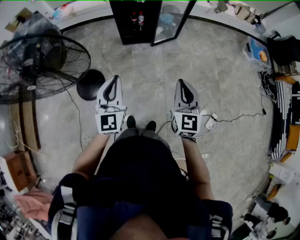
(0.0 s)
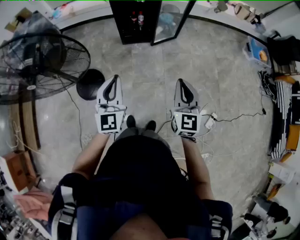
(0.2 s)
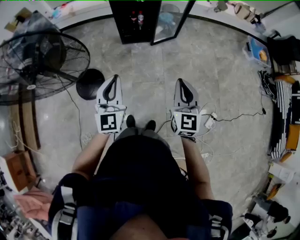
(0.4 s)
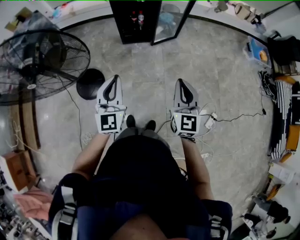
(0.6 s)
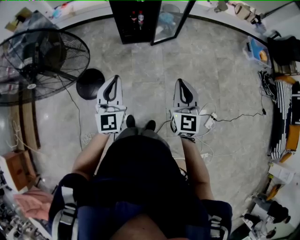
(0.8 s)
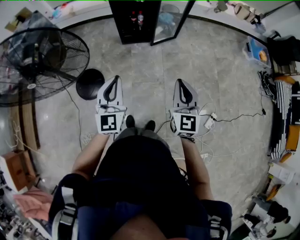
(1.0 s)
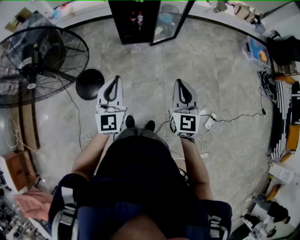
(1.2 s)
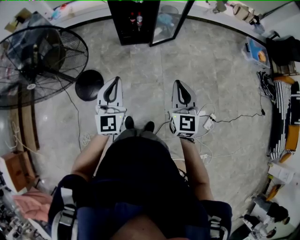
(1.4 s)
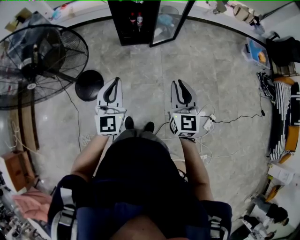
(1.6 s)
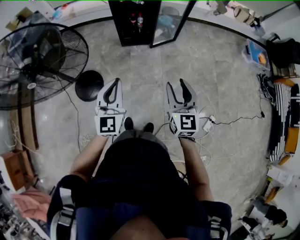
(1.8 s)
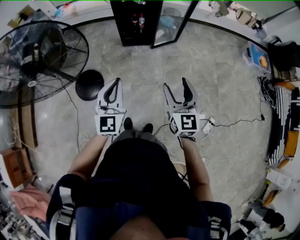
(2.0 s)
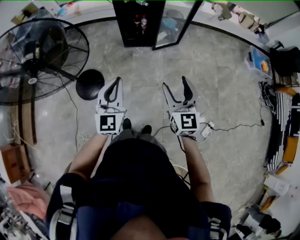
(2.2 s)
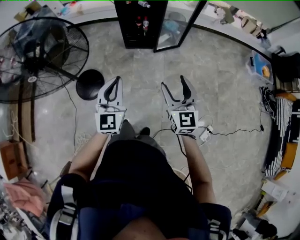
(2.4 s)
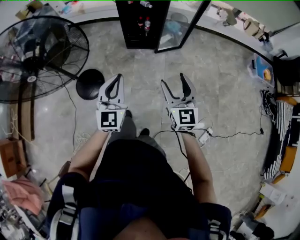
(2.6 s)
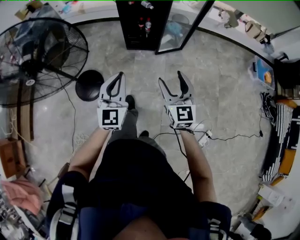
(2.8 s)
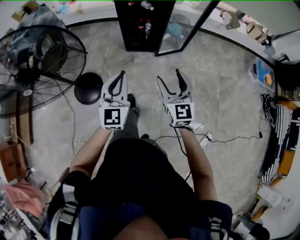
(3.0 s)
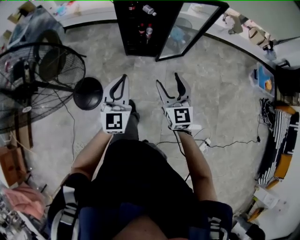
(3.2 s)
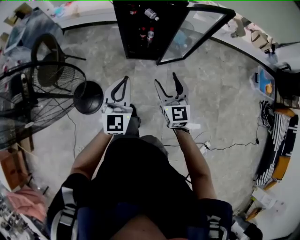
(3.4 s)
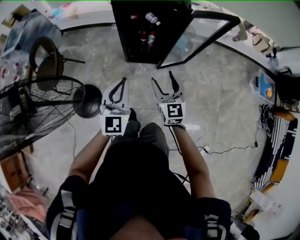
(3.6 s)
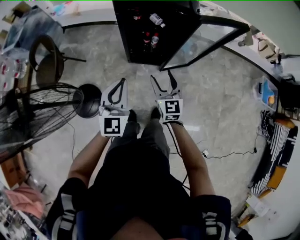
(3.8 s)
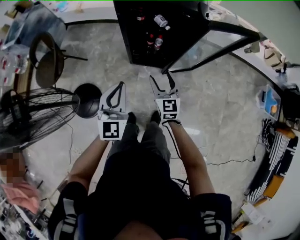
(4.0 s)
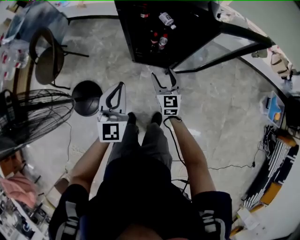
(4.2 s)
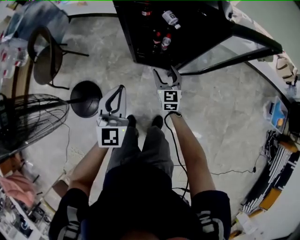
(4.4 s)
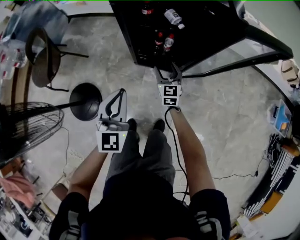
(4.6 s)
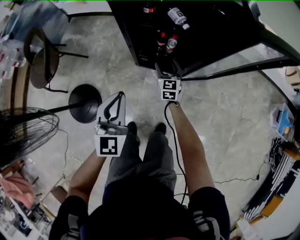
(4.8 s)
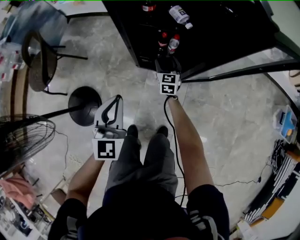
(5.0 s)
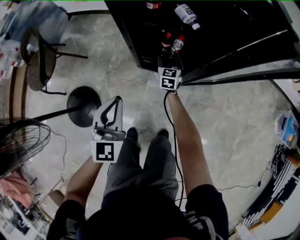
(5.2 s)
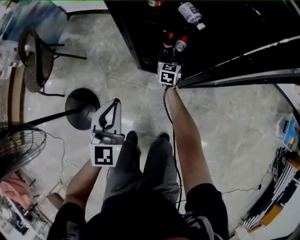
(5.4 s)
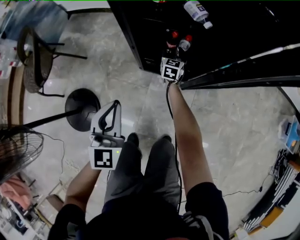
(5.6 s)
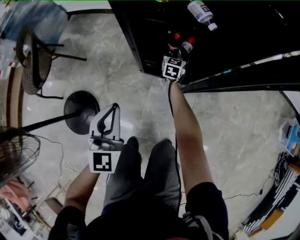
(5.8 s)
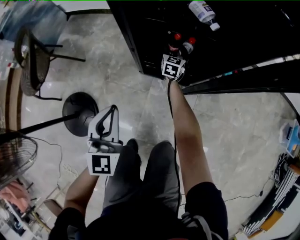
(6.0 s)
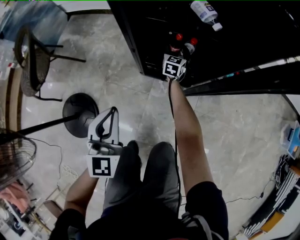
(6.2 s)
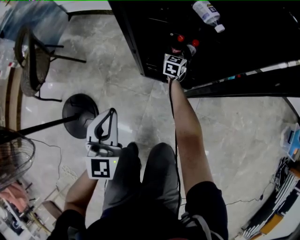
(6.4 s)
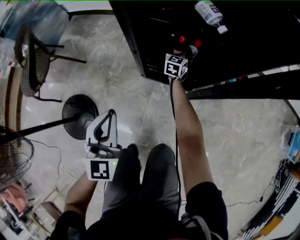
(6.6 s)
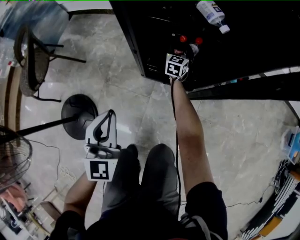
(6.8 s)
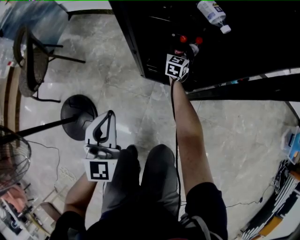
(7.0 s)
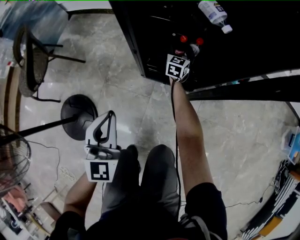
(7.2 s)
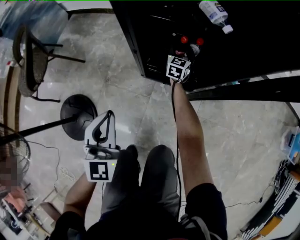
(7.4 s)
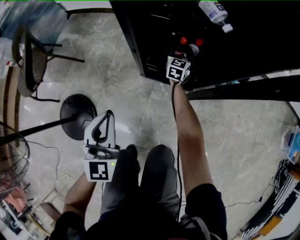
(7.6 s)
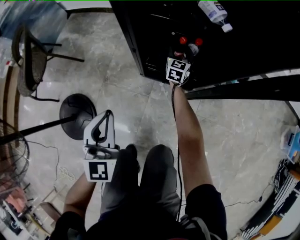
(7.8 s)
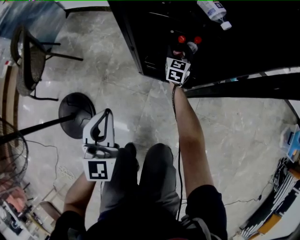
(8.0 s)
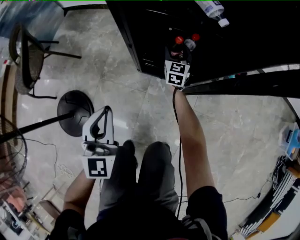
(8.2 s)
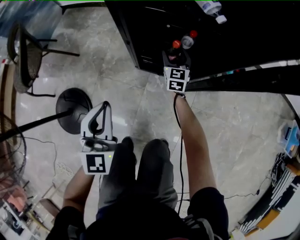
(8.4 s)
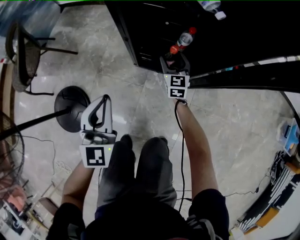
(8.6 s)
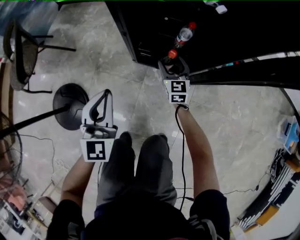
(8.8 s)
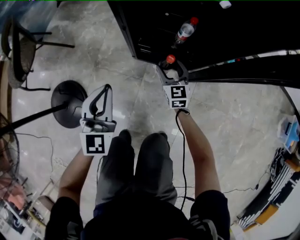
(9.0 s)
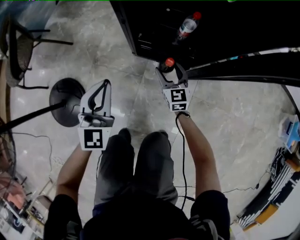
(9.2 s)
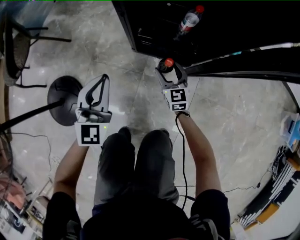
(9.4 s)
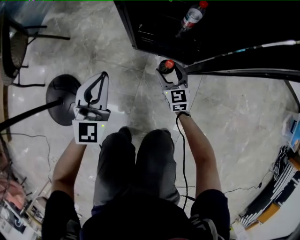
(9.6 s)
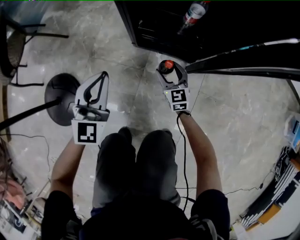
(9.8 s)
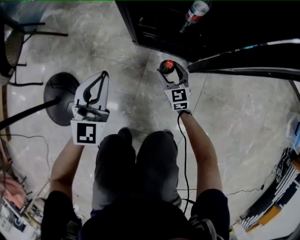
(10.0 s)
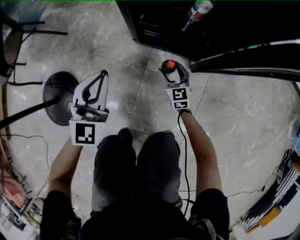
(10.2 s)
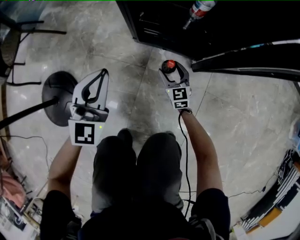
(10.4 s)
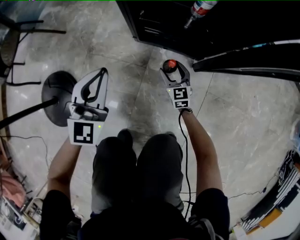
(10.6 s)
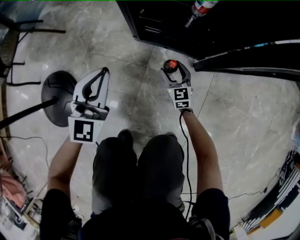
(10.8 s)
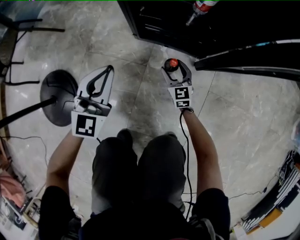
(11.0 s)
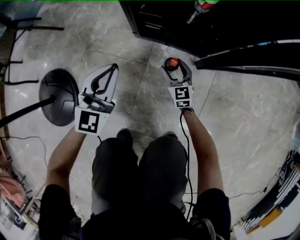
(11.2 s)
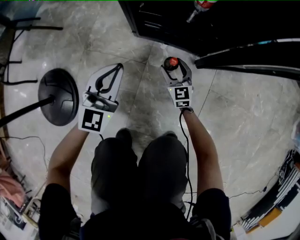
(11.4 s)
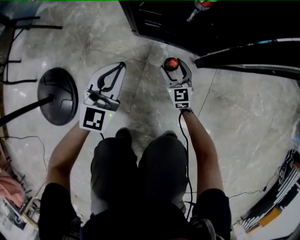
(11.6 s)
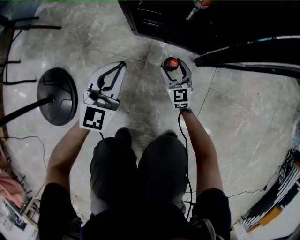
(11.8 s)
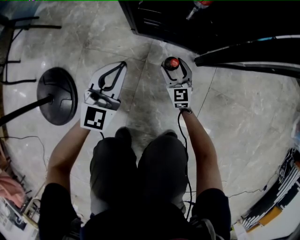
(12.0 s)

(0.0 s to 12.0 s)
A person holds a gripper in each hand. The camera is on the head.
0.0 s - 1.6 s: The grippers make only small movements.
1.6 s - 3.0 s: Both grippers travel together forward, about 15 cm. The right gripper opens its fingers.
3.0 s - 4.4 s: The two grippers go some 50 cm forward and downward.
4.4 s - 6.0 s: The left gripper moves downward, some 25 cm. The right gripper moves downward and forward, about 40 cm.
6.0 s - 7.6 s: The grippers make only small movements.
7.6 s - 9.0 s: The right gripper travels backward by about 20 cm, and turns by about 20 degrees. Meanwhile the left gripper shifts approximately 5 cm downward.
9.0 s - 10.4 s: The right gripper shifts about 25 cm downward; the left gripper goes roughly 15 cm downward.
10.4 s - 12.0 s: The left gripper moves downward, about 10 cm.

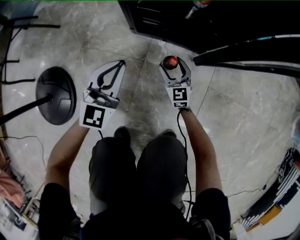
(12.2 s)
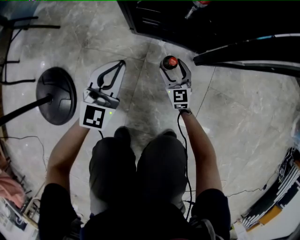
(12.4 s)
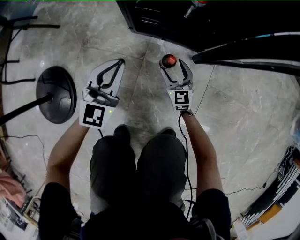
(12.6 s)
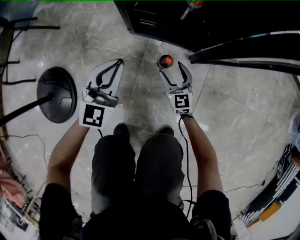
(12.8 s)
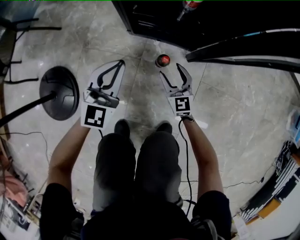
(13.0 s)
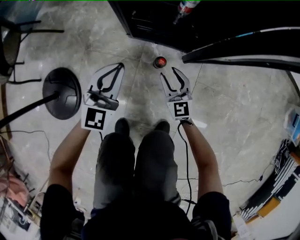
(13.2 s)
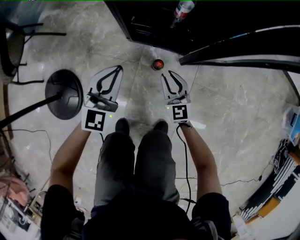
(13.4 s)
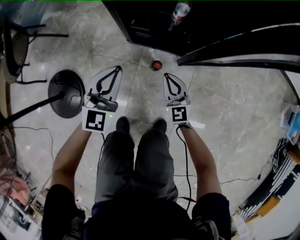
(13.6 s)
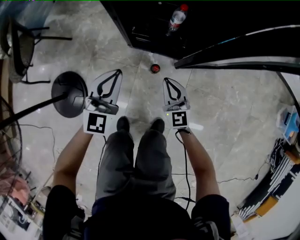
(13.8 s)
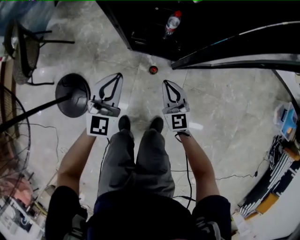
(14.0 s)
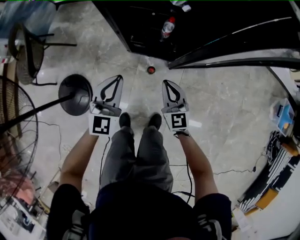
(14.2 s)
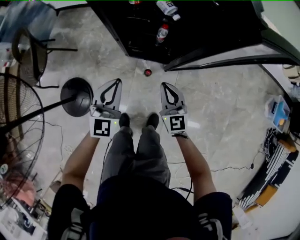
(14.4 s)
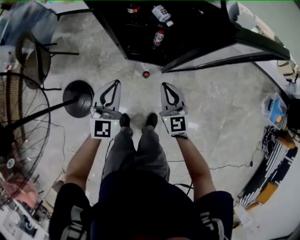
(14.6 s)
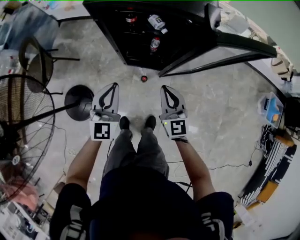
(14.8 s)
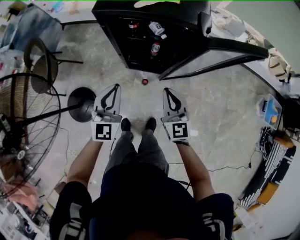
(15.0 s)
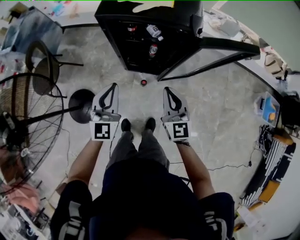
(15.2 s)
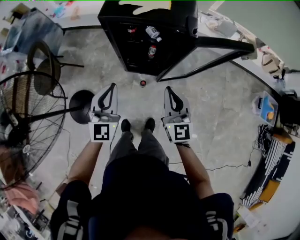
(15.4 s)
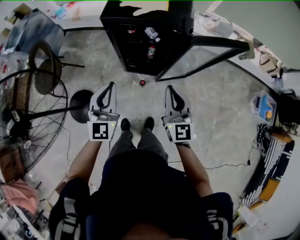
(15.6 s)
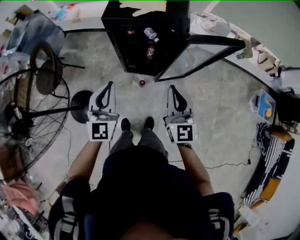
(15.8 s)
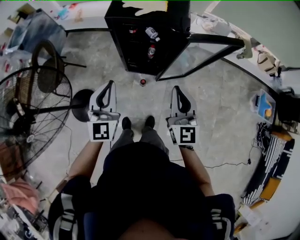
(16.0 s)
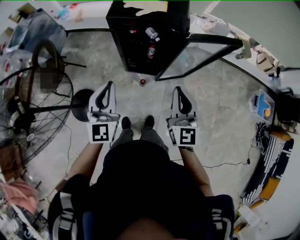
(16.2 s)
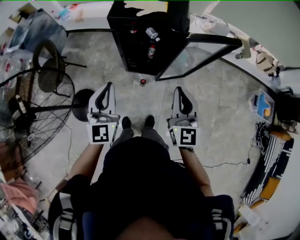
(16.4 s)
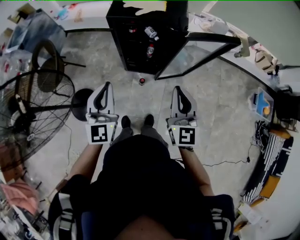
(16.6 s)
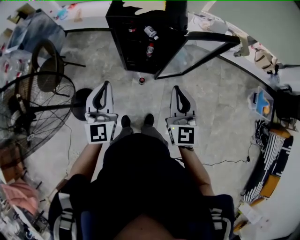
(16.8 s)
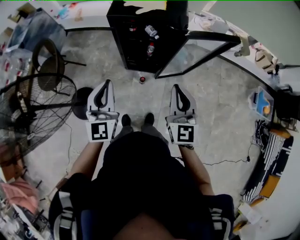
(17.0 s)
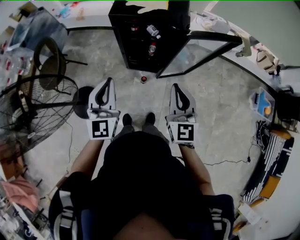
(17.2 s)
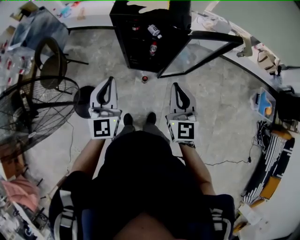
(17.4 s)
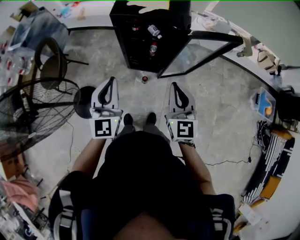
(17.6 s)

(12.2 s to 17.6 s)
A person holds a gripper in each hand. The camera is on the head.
12.2 s - 13.6 s: The two grippers go approximately 25 cm upward. The right gripper closes its fingers.
13.6 s - 15.0 s: The grippers both shift upward by some 50 cm.
15.0 s - 16.2 s: The two grippers go some 20 cm upward and backward.
16.2 s - 17.6 s: There are only small adjustments of the grippers.

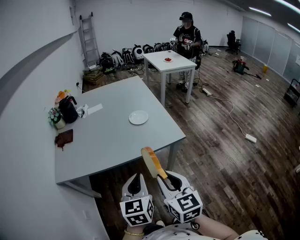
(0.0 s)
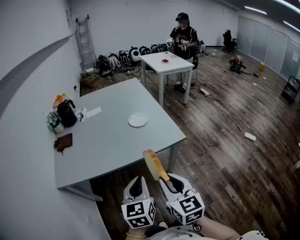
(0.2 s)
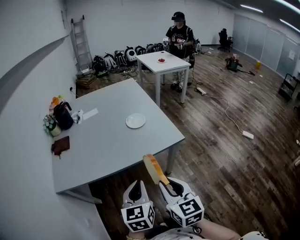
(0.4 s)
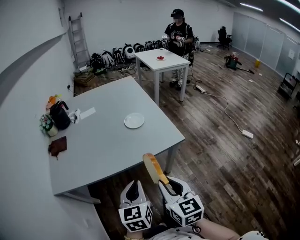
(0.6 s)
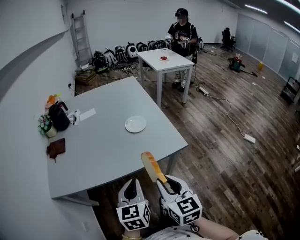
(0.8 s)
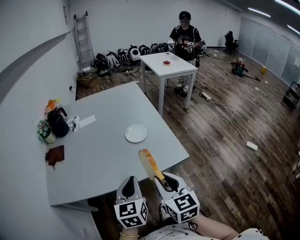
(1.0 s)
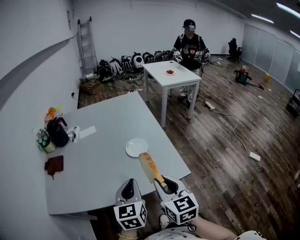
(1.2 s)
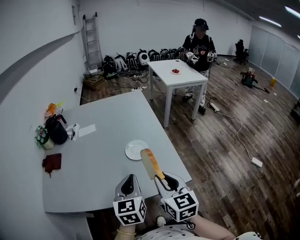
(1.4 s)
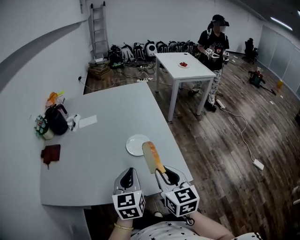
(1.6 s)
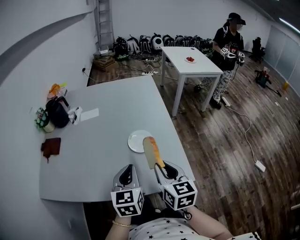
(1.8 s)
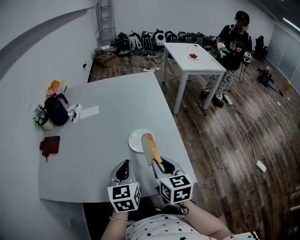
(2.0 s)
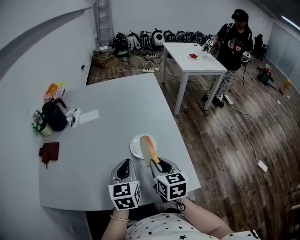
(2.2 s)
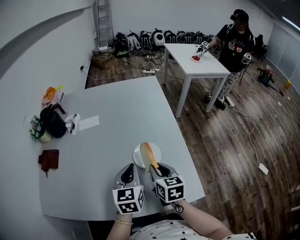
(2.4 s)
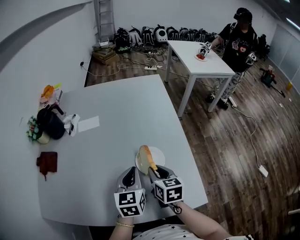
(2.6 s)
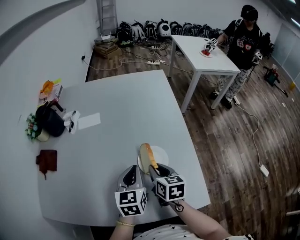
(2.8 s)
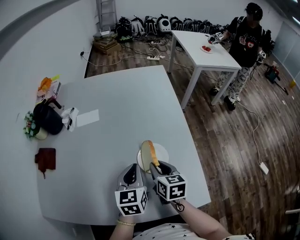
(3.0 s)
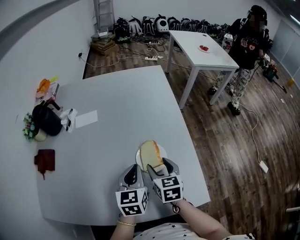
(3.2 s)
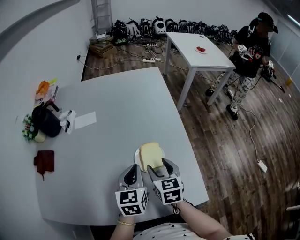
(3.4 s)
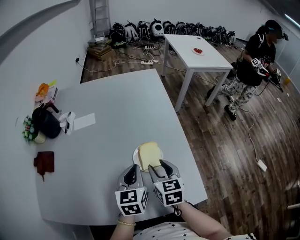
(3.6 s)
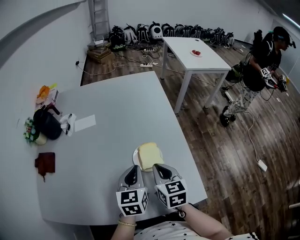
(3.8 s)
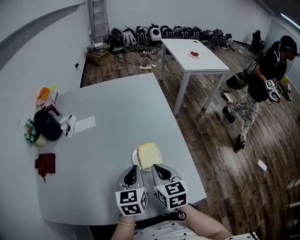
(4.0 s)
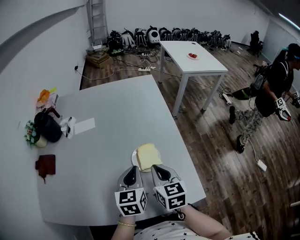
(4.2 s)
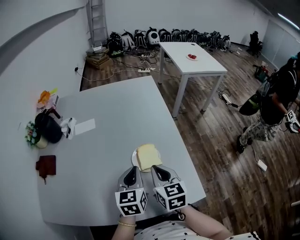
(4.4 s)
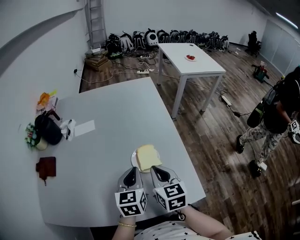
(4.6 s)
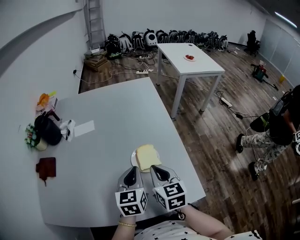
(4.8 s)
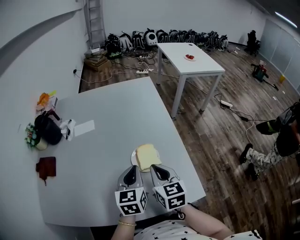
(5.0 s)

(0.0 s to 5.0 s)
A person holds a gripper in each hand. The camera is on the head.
0.0 s - 1.6 s: The two grippers go roughly 30 cm forward.
1.6 s - 3.4 s: Both grippers travel together forward and downward, roughly 20 cm. The right gripper opens its fingers.
3.4 s - 5.0 s: The right gripper heads upward, covering roughly 5 cm, and closes its fingers.

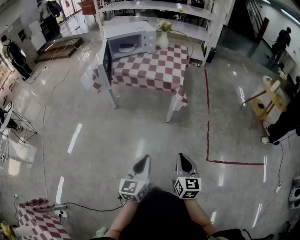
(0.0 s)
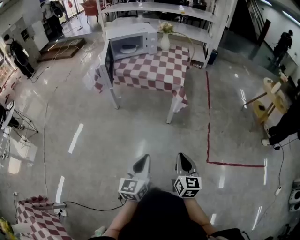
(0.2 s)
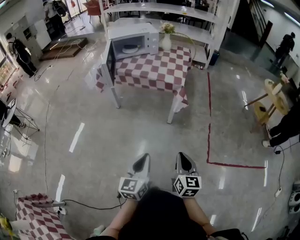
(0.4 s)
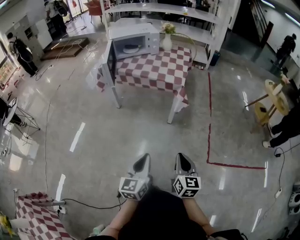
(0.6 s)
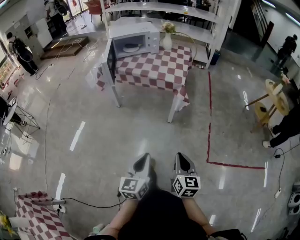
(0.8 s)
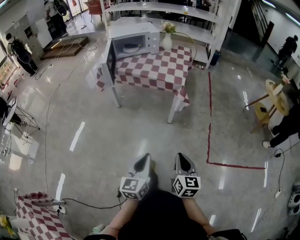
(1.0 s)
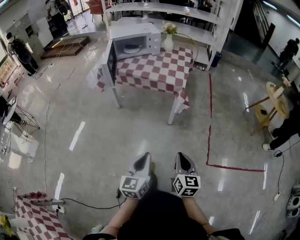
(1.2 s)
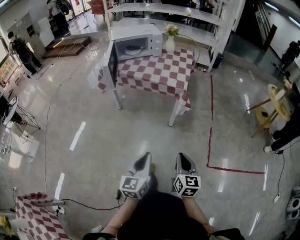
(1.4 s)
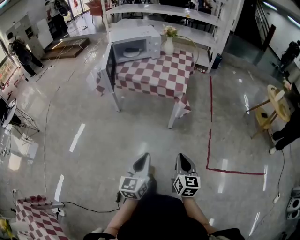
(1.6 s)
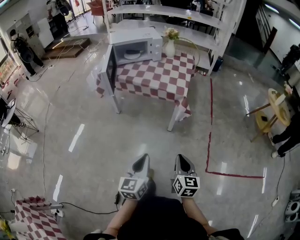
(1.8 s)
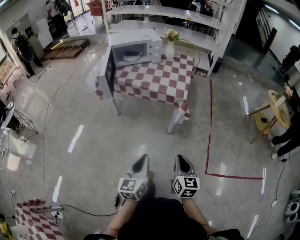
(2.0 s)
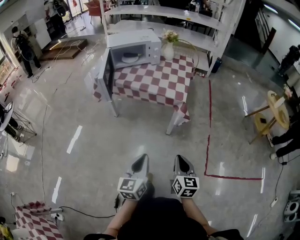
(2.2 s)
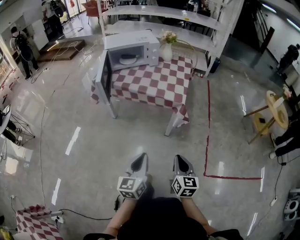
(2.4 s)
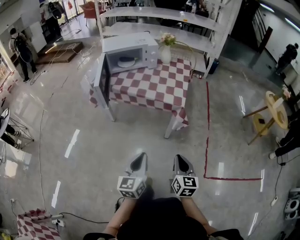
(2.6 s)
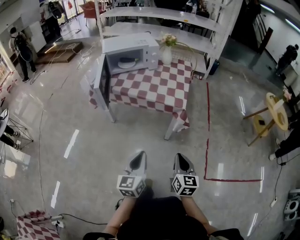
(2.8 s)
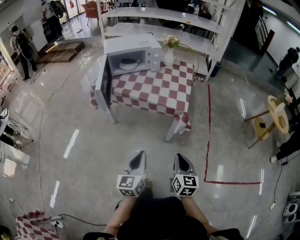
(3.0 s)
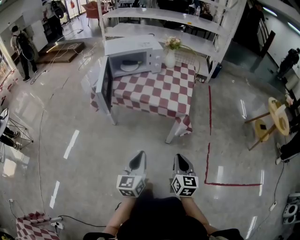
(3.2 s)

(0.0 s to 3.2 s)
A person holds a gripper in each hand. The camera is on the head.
0.0 s - 1.6 s: The grippers stay close to where they were, moving slightly.
1.6 s - 3.2 s: The grippers both shift forward by about 15 cm.
